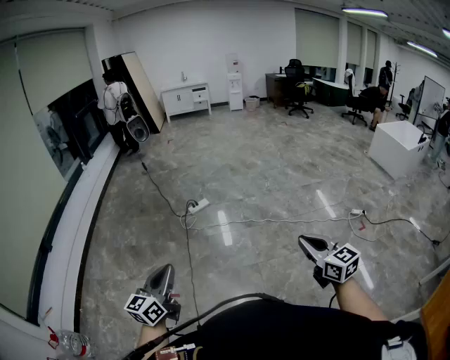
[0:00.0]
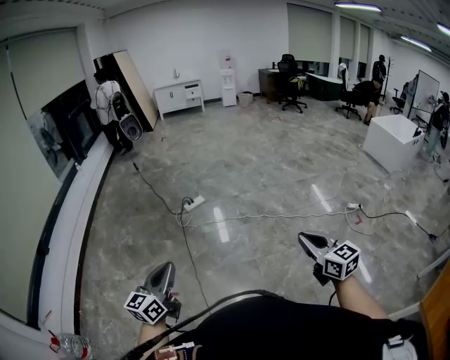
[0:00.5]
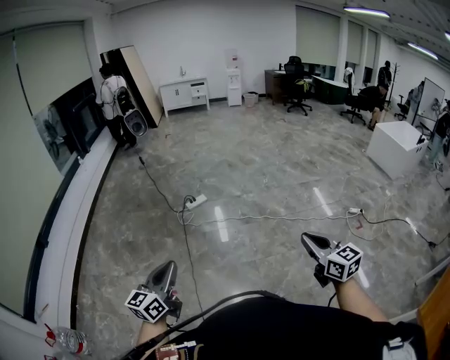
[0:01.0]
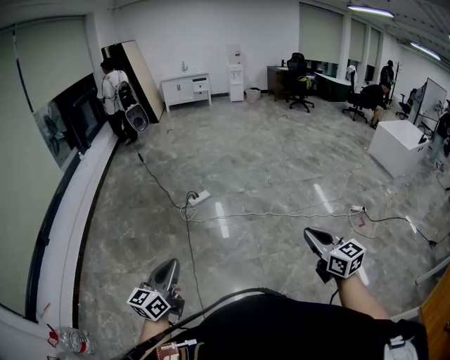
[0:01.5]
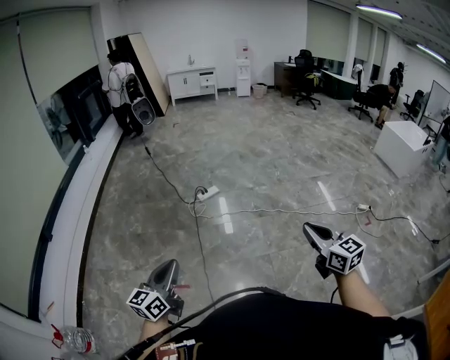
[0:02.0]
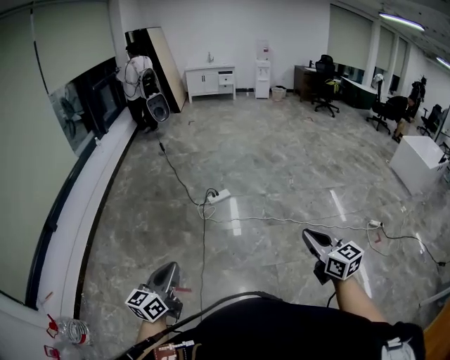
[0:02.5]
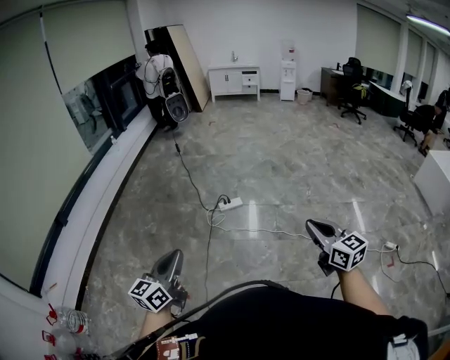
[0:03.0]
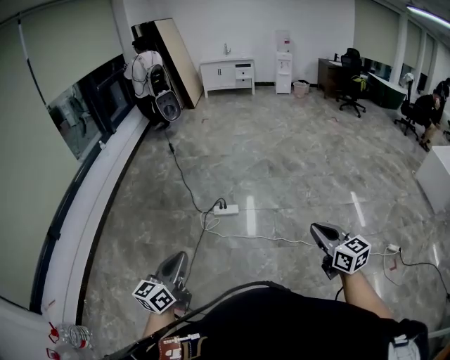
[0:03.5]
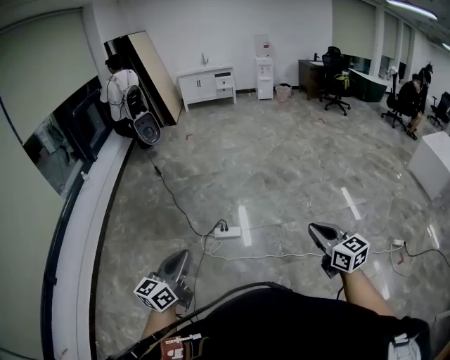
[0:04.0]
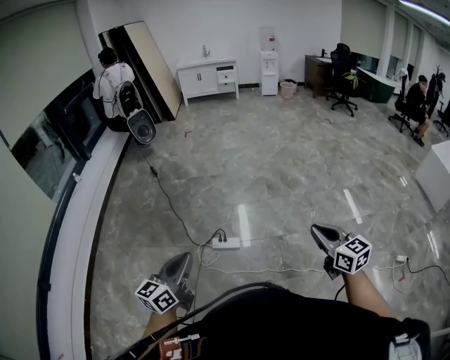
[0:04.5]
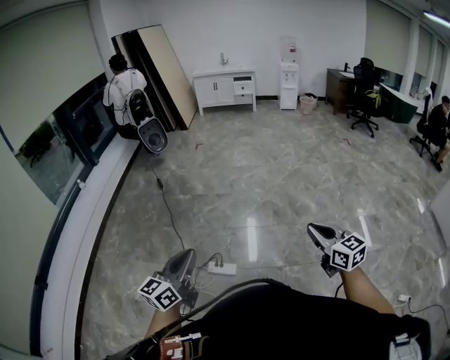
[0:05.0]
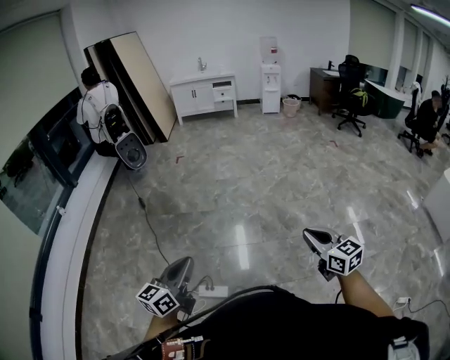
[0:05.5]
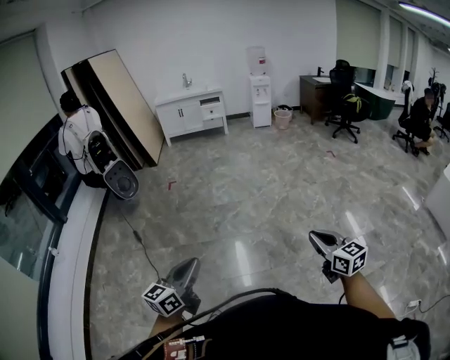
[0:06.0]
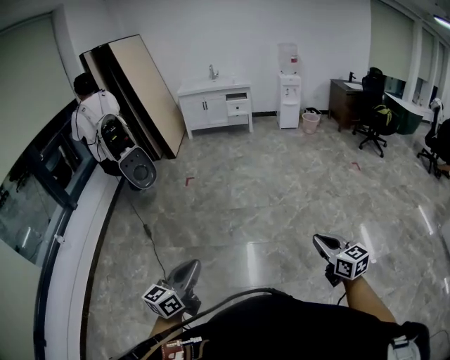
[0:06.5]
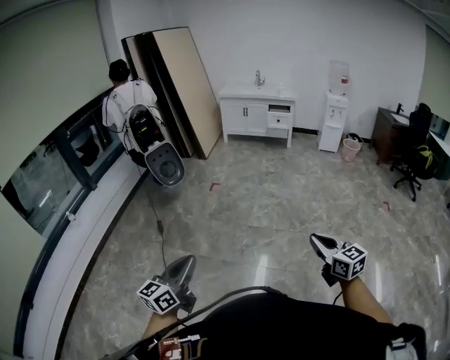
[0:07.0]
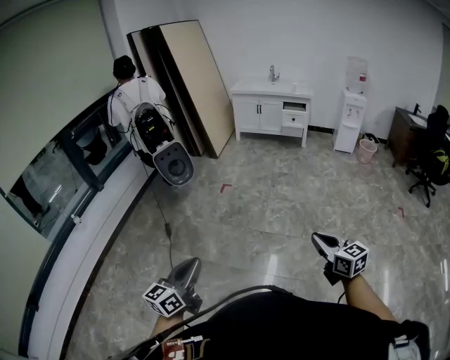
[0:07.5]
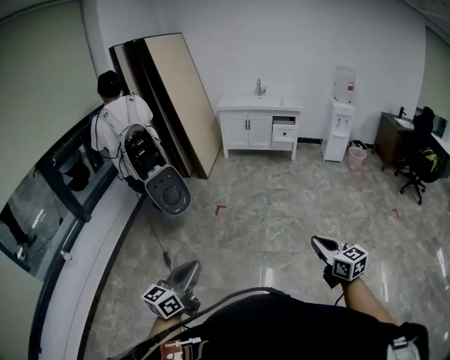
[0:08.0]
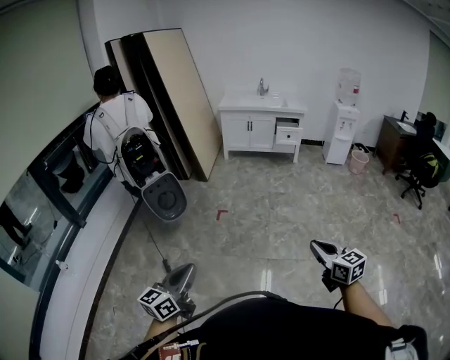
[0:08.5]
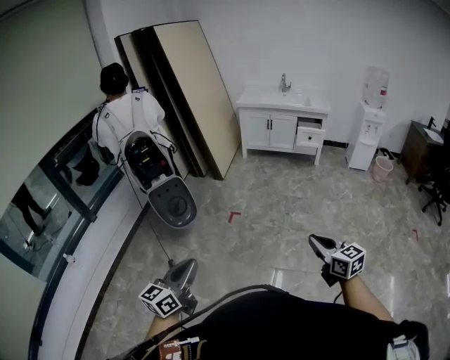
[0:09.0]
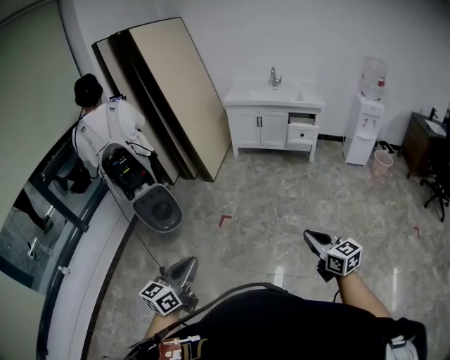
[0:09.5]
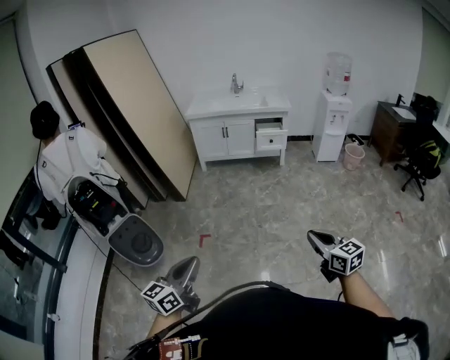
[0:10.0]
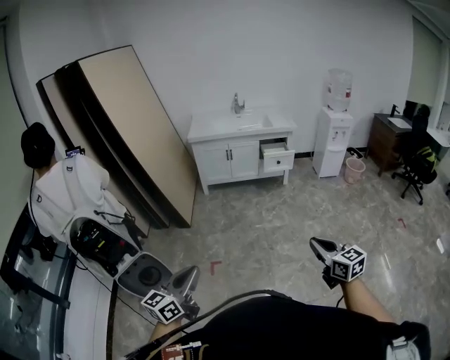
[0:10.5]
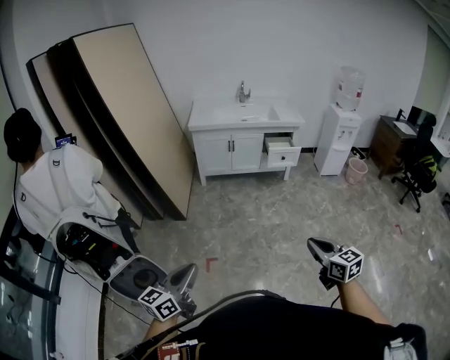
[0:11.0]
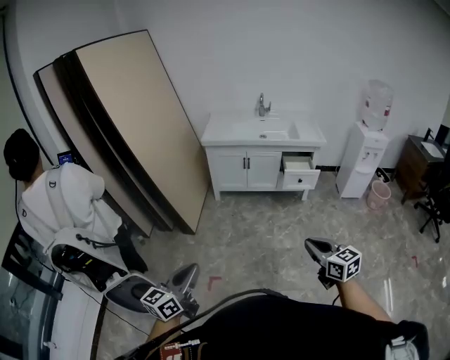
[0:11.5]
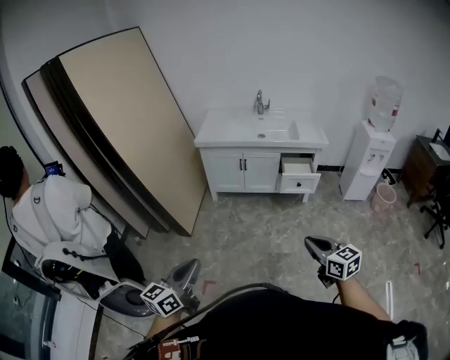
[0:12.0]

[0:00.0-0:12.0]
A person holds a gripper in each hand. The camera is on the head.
0:00.0 to 0:02.0: The right gripper heads to the left and forward, covering some 15 cm, while the left gripper travels to the left by approximately 15 cm.
0:02.0 to 0:04.0: The two grippers travel together, forward, some 60 cm.
0:04.0 to 0:06.0: The two grippers travel together, forward, about 80 cm.
0:06.0 to 0:08.0: The pair of grippers is taken some 60 cm.
0:08.0 to 0:10.0: The two grippers travel together, forward, approximately 50 cm.
0:10.0 to 0:12.0: The pair of grippers is taken forward, some 50 cm.

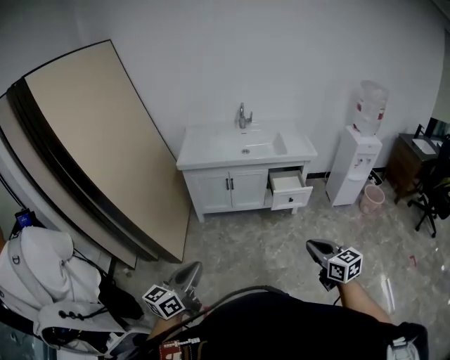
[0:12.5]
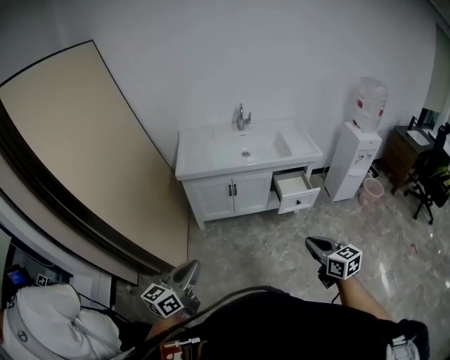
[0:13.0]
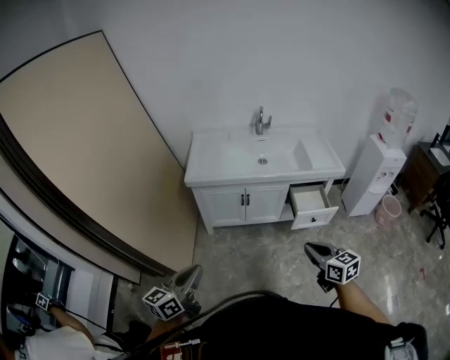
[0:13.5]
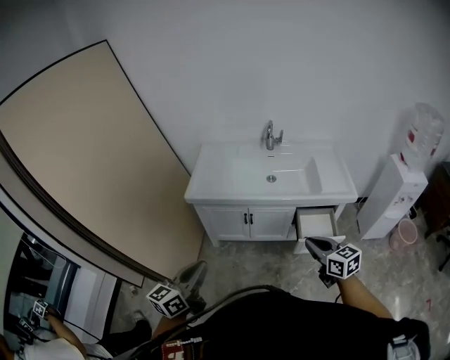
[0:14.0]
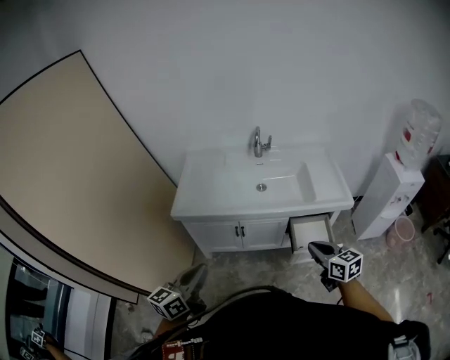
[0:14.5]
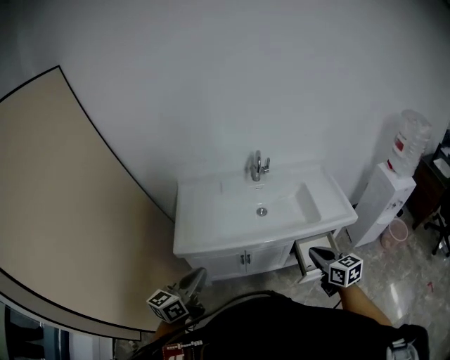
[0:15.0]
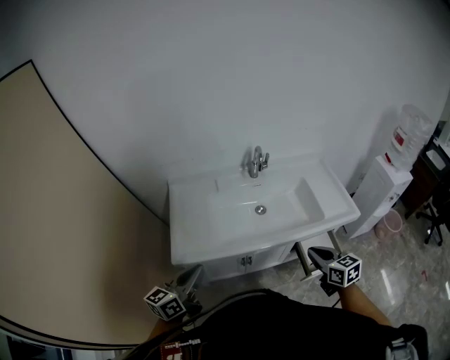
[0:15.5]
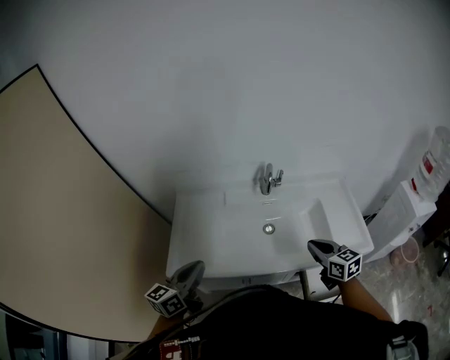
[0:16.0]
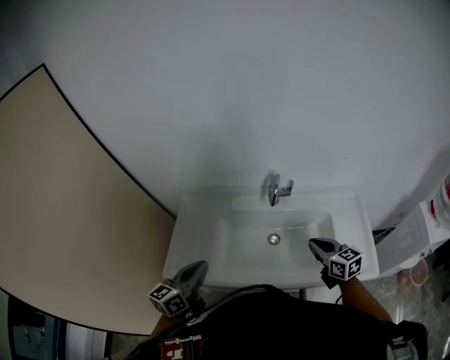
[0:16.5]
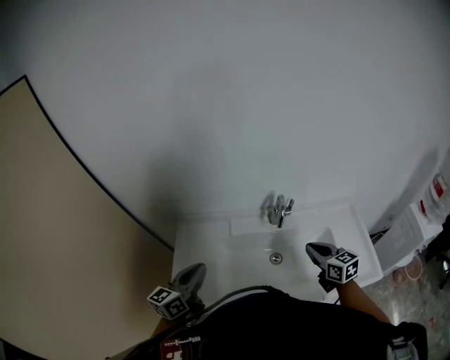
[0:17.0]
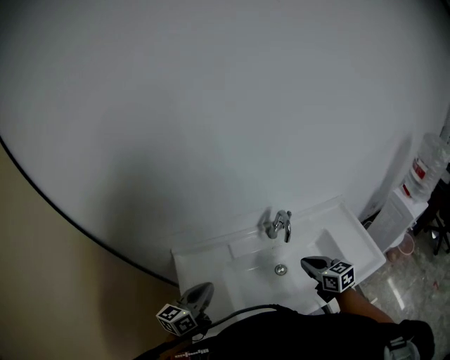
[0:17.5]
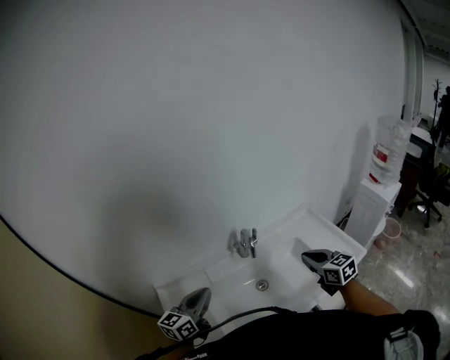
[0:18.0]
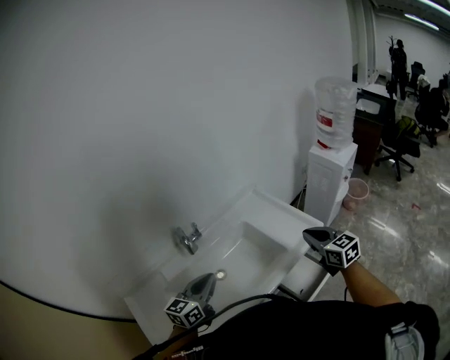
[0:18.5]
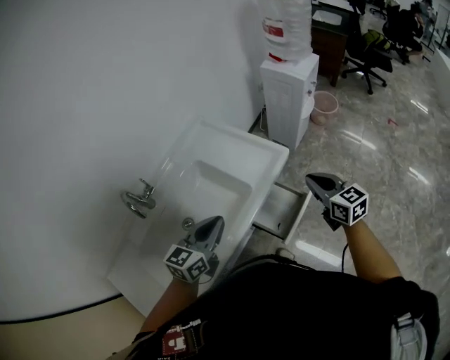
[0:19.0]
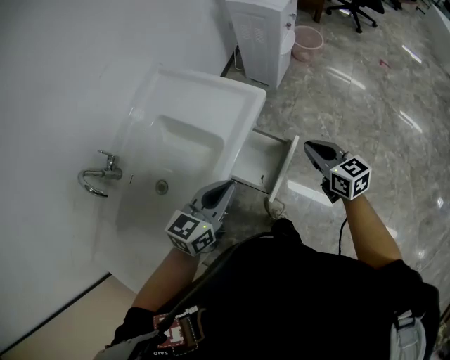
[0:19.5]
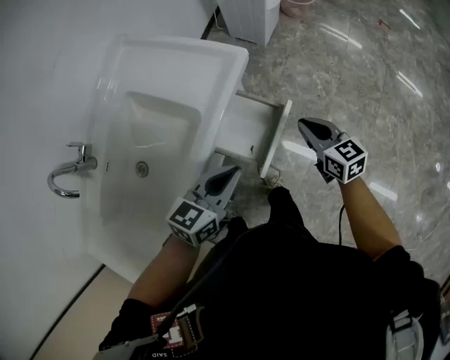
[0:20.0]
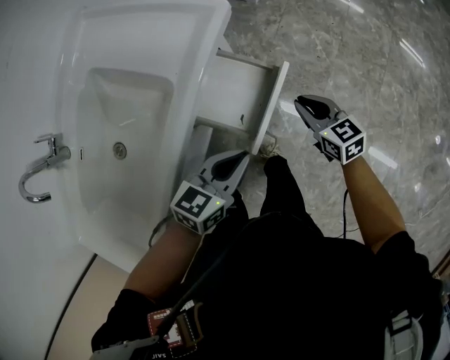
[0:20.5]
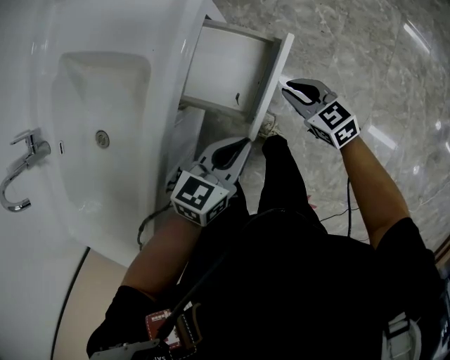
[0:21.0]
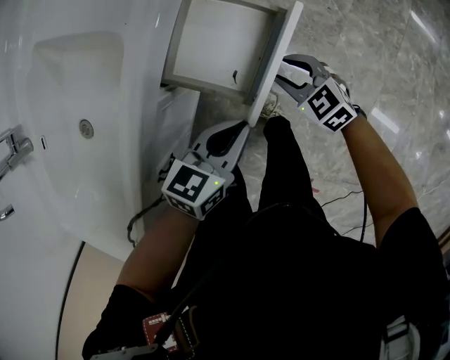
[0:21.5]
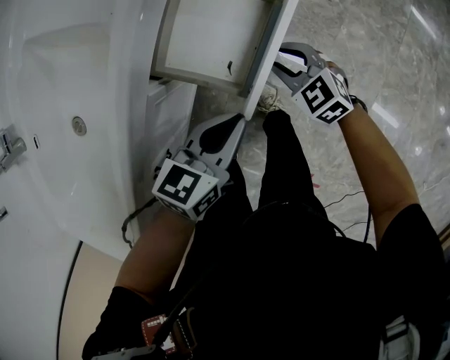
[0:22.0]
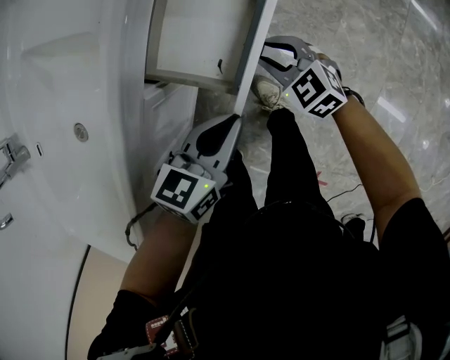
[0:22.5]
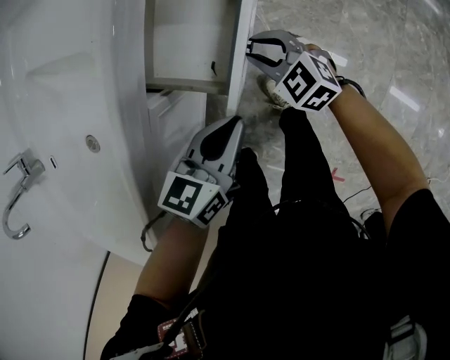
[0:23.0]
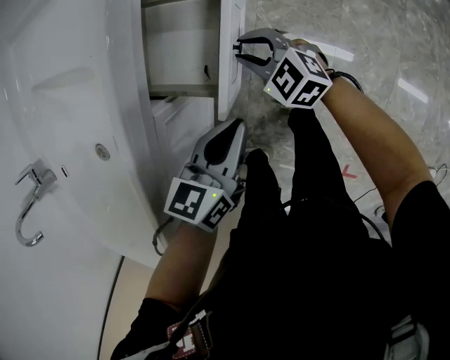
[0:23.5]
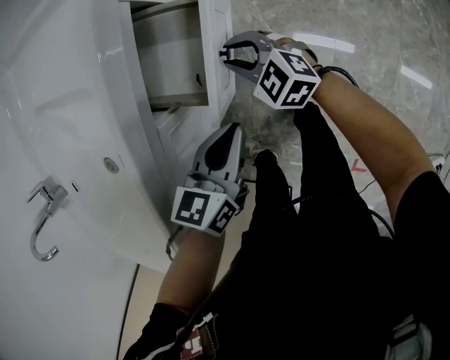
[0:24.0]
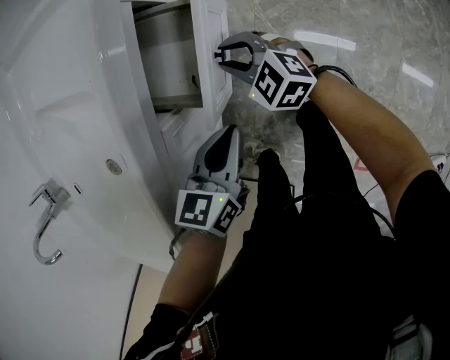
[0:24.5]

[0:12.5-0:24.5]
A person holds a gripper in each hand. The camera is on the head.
0:12.5 to 0:14.5: Both grippers are carried forward, approximately 50 cm.
0:14.5 to 0:16.5: The two grippers travel together, forward, roughly 40 cm.
0:16.5 to 0:18.5: The right gripper moves roughly 25 cm, and swivels about 40 degrees. Meanwhile the left gripper changes place by approximately 25 cm, and swivels approximately 50 degrees.
0:18.5 to 0:20.5: The left gripper shifts by about 50 cm, and rotates approximately 50 degrees. Meanwhile the right gripper moves downward, about 40 cm, and changes its angle by some 30 degrees.
0:20.5 to 0:22.5: The left gripper is displaced downward by about 10 cm; the right gripper shifts roughly 15 cm downward and to the left, swivels about 30 degrees, and opens.
0:22.5 to 0:24.5: The right gripper goes some 5 cm to the left.

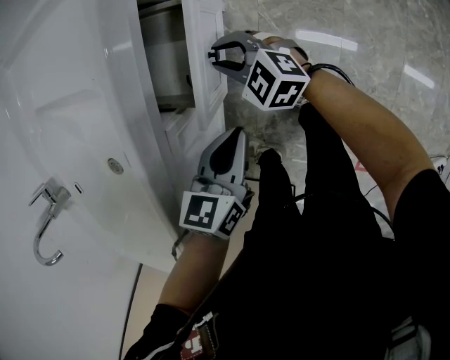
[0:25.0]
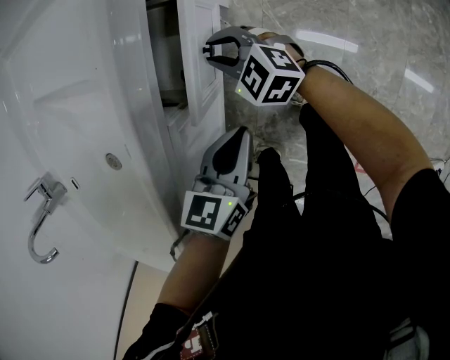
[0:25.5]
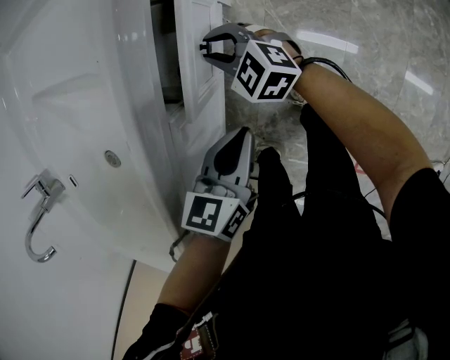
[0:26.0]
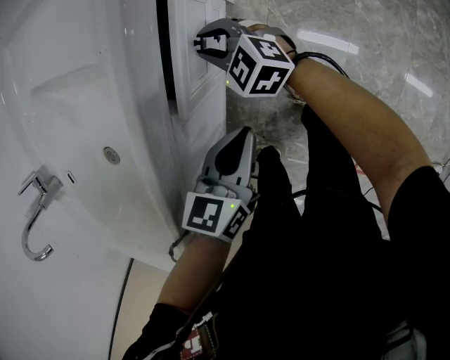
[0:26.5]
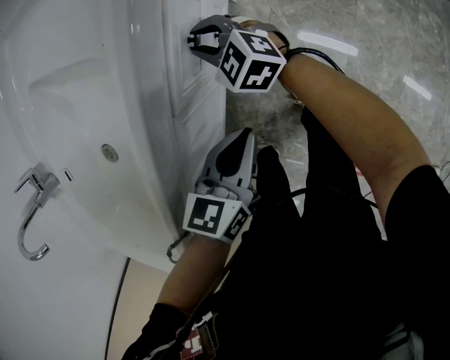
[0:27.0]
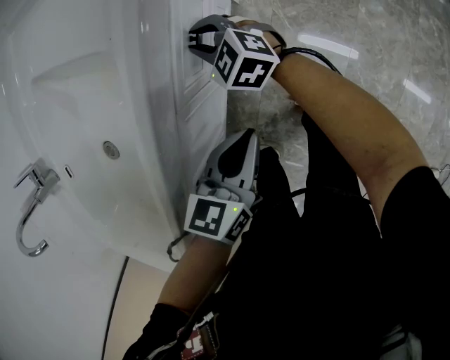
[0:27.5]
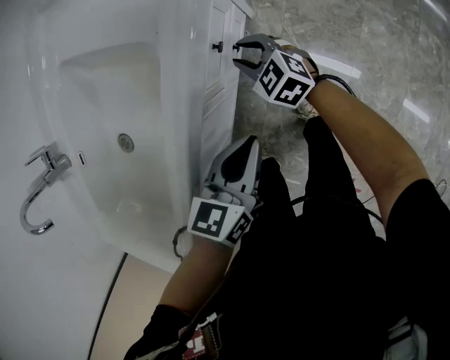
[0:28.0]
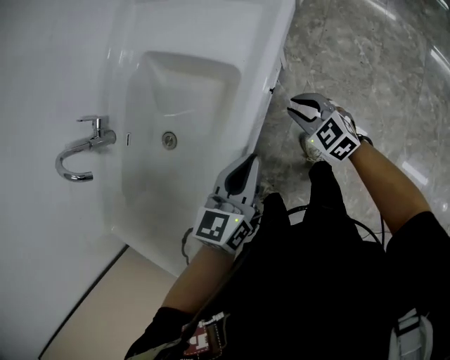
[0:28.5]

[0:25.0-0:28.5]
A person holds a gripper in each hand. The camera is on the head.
0:25.0 to 0:27.0: The right gripper is displaced to the left by about 5 cm.
0:27.0 to 0:28.5: The left gripper moves upward, some 20 cm. The right gripper is displaced upward and backward by roughly 15 cm.
